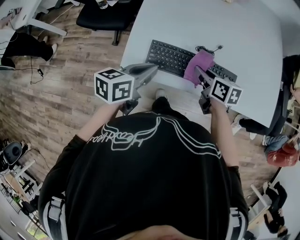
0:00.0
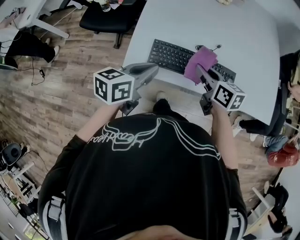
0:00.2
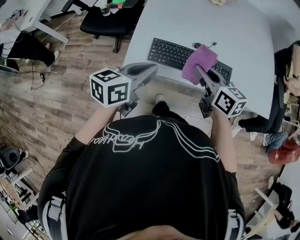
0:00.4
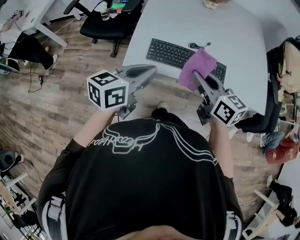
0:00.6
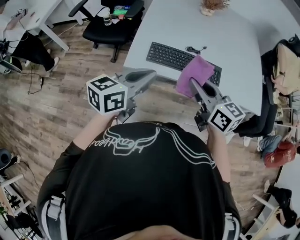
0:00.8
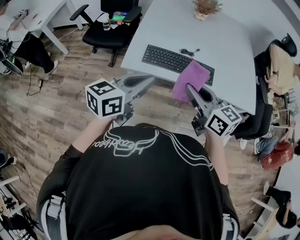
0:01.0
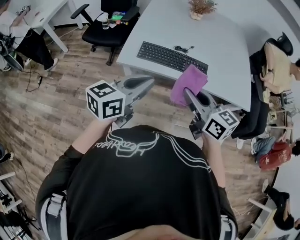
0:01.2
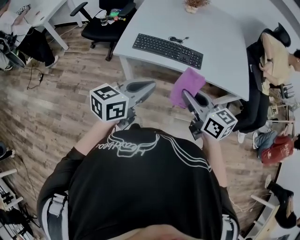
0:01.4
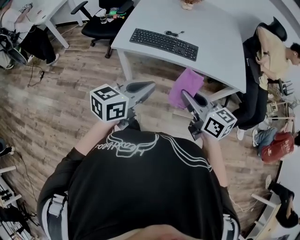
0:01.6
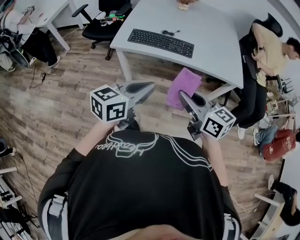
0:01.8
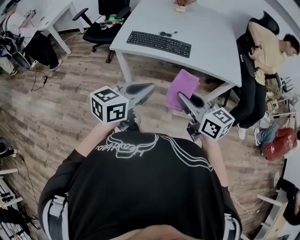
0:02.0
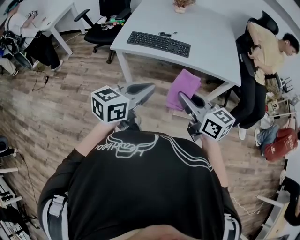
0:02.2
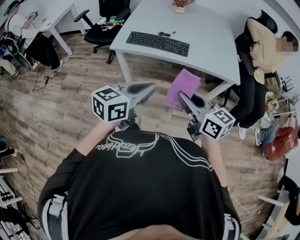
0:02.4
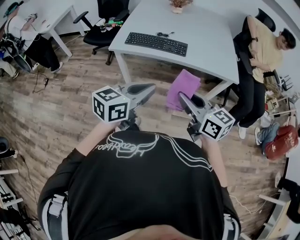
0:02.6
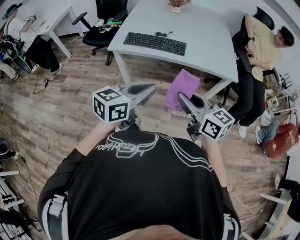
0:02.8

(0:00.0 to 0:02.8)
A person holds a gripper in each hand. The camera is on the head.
0:00.0 - 0:01.4: The right gripper heads backward and upward, covering some 40 cm, and turns by roughly 30 degrees. Meanwhile the left gripper heads backward, upward and to the right, covering some 35 cm, and changes its angle by about 20 degrees.
0:01.4 - 0:02.8: The grippers both shift backward and to the right by some 15 cm.

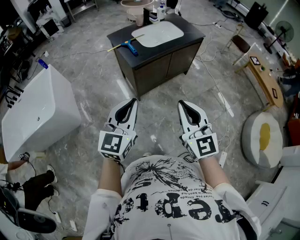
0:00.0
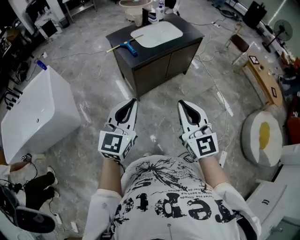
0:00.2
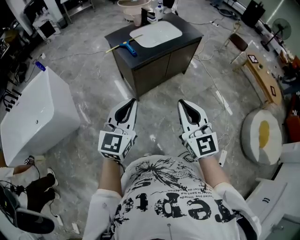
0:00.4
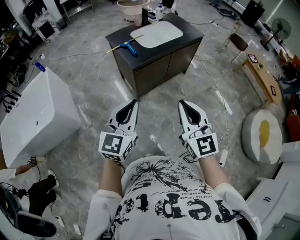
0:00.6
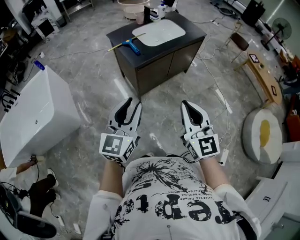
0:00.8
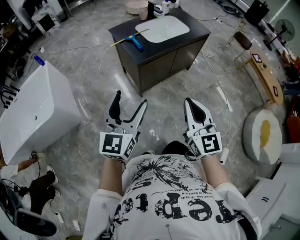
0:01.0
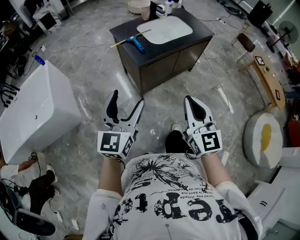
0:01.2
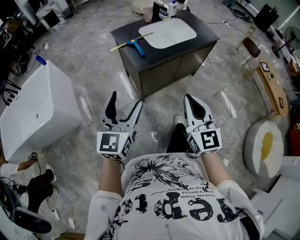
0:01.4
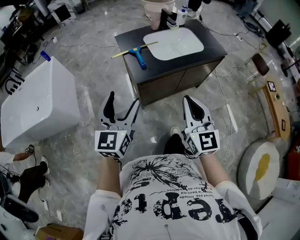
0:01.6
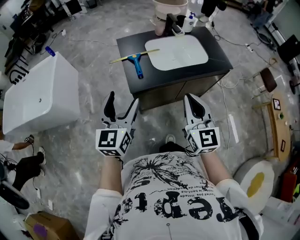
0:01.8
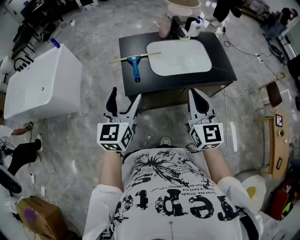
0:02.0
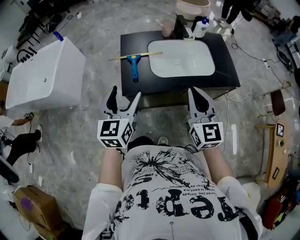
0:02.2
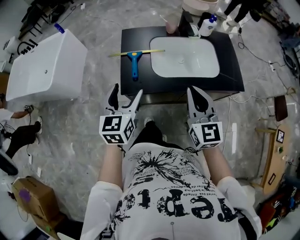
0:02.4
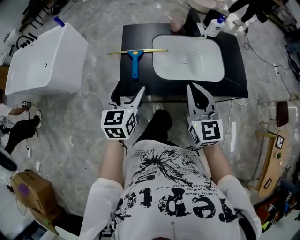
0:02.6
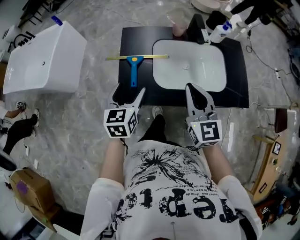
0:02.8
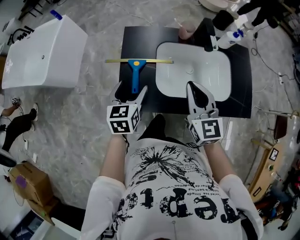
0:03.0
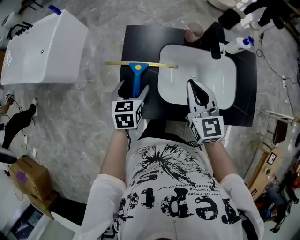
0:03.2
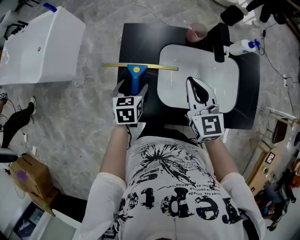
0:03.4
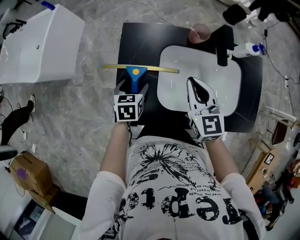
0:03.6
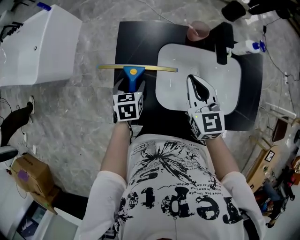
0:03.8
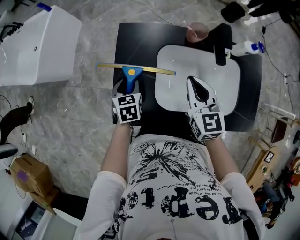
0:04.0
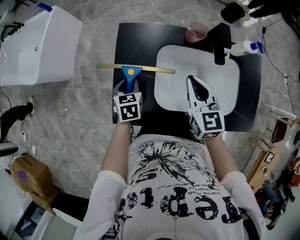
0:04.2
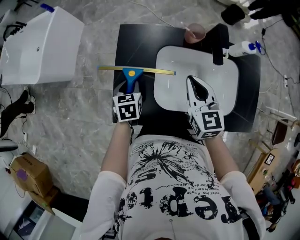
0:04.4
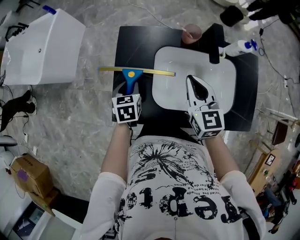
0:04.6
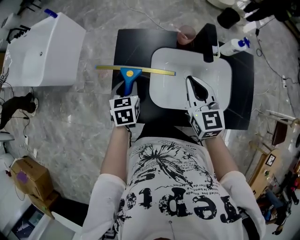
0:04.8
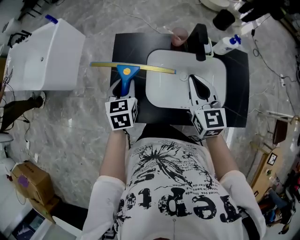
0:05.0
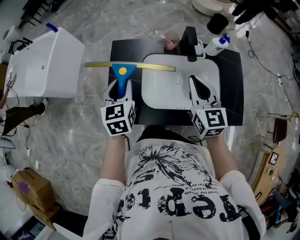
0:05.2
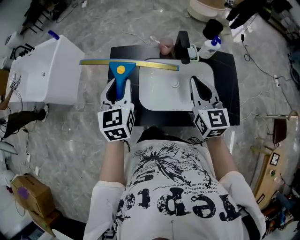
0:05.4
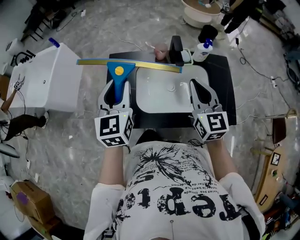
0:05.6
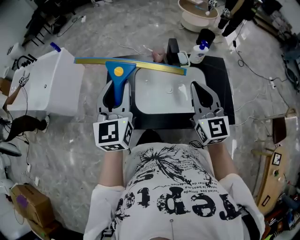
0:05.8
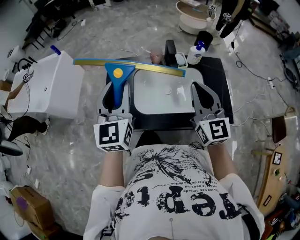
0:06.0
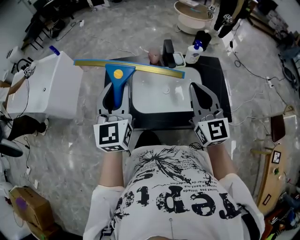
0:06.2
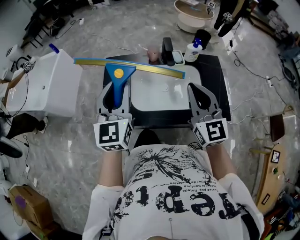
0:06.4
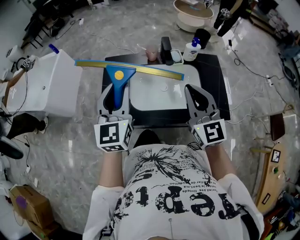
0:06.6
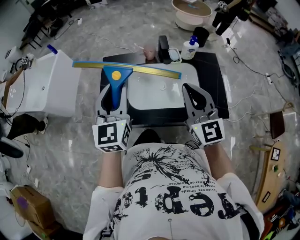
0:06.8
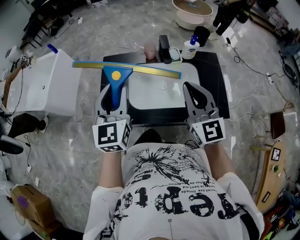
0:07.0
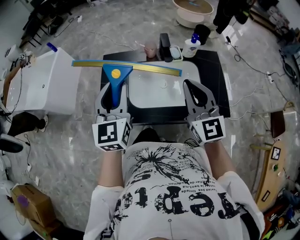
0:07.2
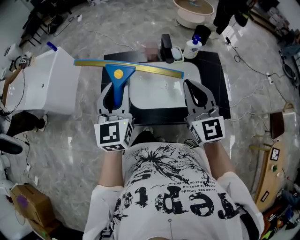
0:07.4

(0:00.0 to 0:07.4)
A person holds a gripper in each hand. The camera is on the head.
0:00.0 - 0:01.4: The left gripper shifts some 15 cm forward and to the left, and opens up. Meanwhile the right gripper moves forward, approximately 15 cm.
0:01.4 - 0:03.0: Both grippers are carried roughly 60 cm. The left gripper turns by about 50 degrees, while the right gripper changes its angle by about 30 degrees.
0:03.0 - 0:04.4: The right gripper shifts roughly 15 cm forward and downward. Meanwhile the left gripper travels downward and forward by some 15 cm, rotates roughly 20 degrees, and closes up.
0:04.4 - 0:06.0: The right gripper is displaced upward, backward and to the right by about 30 cm, and swivels roughly 30 degrees, while the left gripper is displaced upward by some 35 cm, and angles its fingers upward, by some 50 degrees.
0:06.0 - 0:07.4: The grippers stay close to where they were, moving slightly.

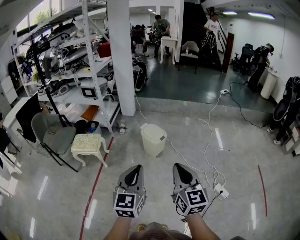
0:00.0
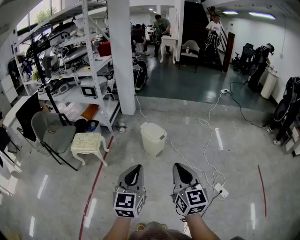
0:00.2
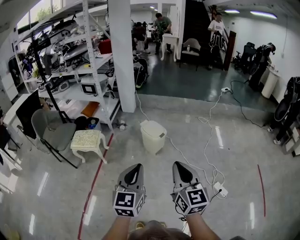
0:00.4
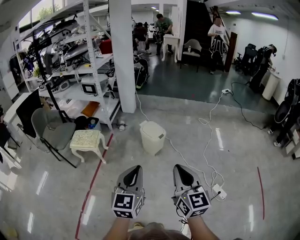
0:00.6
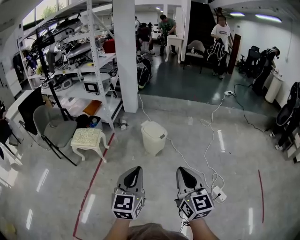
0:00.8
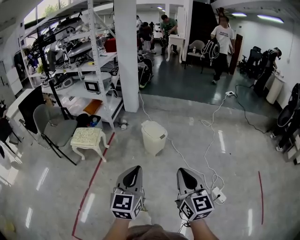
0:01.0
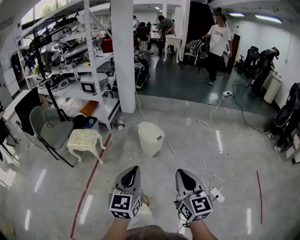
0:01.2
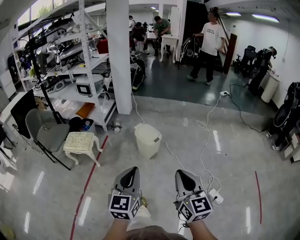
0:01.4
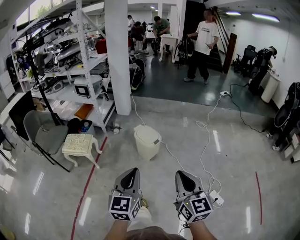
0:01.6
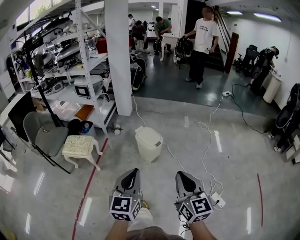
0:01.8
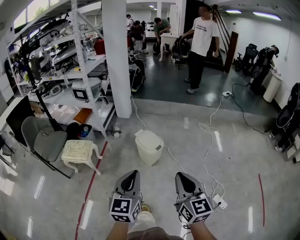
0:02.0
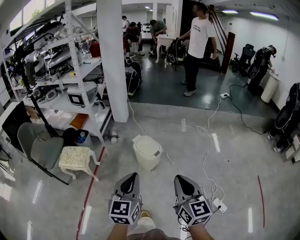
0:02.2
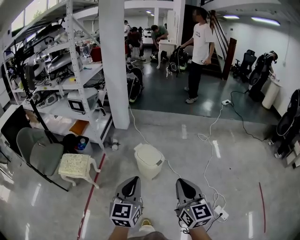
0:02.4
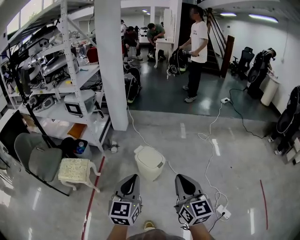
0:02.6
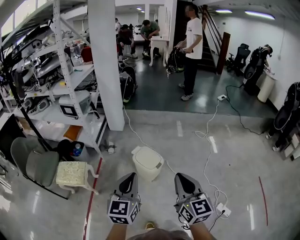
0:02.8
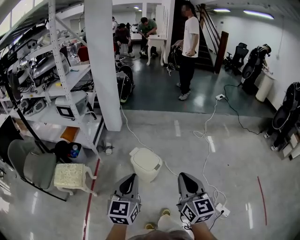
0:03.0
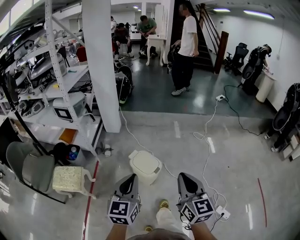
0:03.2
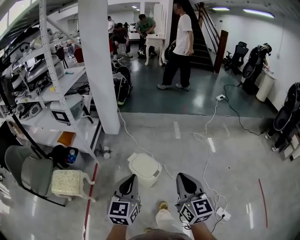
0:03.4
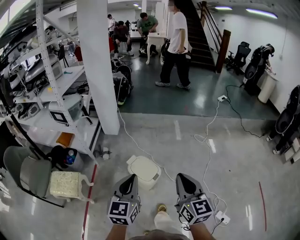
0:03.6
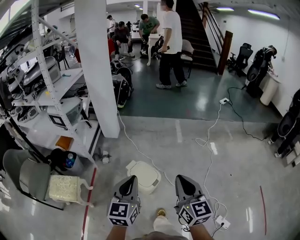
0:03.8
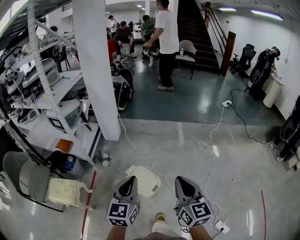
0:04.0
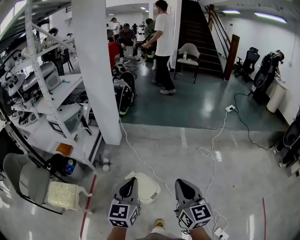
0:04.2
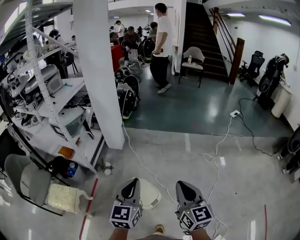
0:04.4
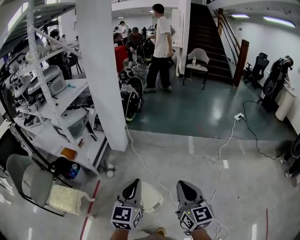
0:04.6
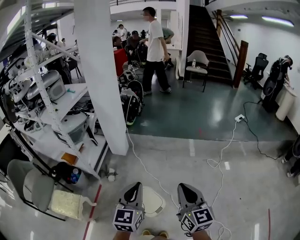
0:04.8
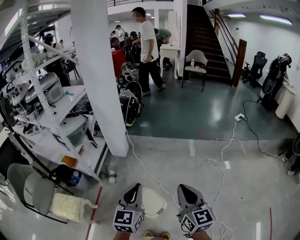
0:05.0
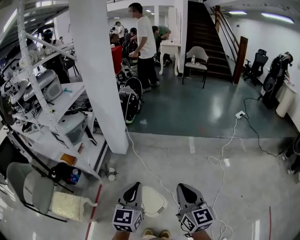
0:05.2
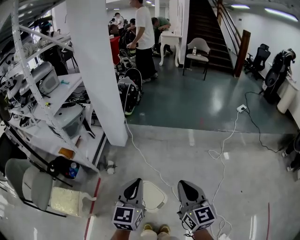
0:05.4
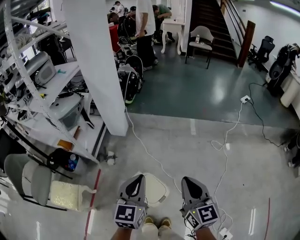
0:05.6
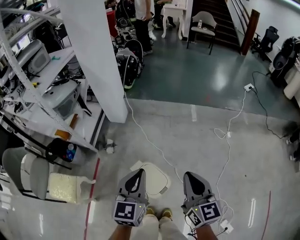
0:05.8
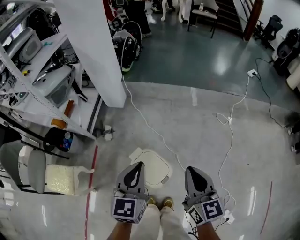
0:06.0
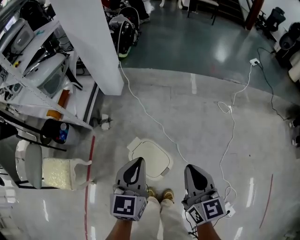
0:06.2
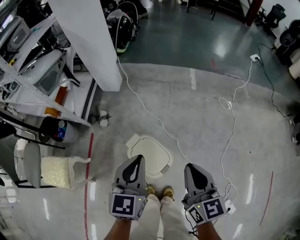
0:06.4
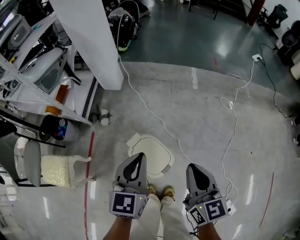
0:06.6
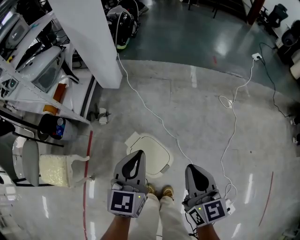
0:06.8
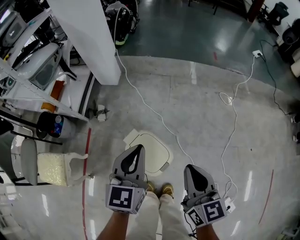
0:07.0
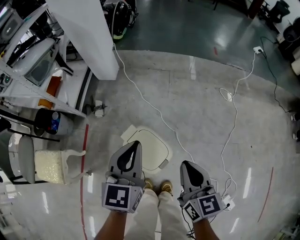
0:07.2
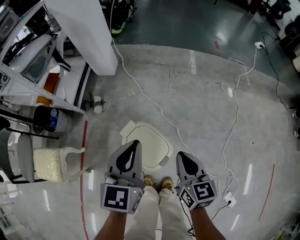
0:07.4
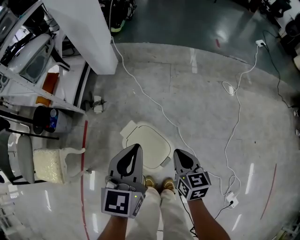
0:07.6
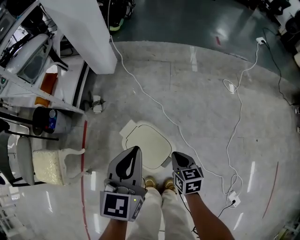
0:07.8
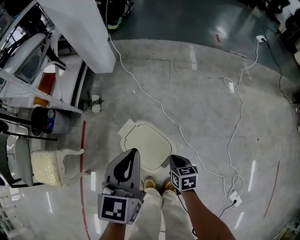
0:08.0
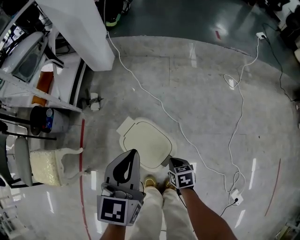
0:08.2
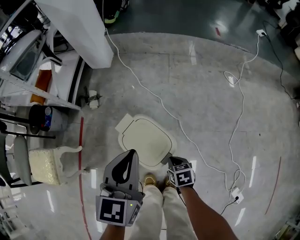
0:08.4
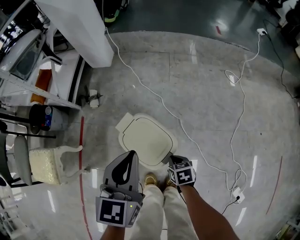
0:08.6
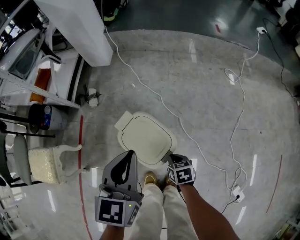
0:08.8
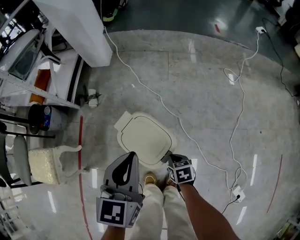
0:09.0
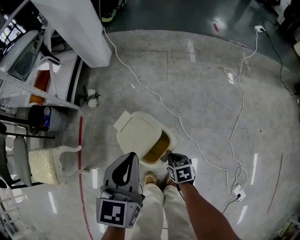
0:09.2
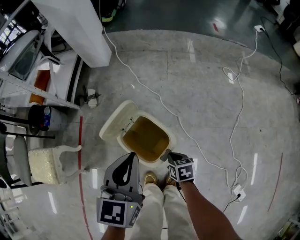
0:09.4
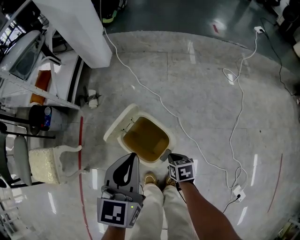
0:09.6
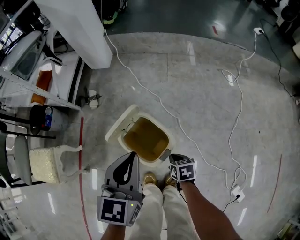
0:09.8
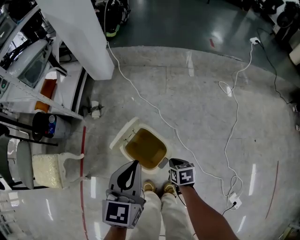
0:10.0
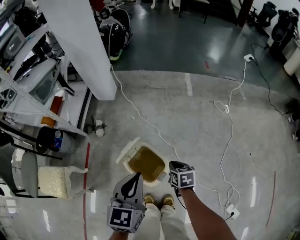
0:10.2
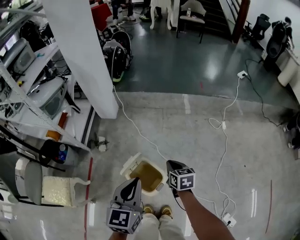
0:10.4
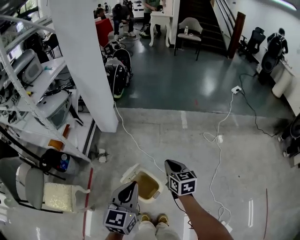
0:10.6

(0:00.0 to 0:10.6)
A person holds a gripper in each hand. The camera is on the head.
0:00.0 - 0:01.6: The right gripper moves to the right and forward, some 10 cm; the left gripper heads forward, covering roughly 5 cm.
0:01.6 - 0:03.0: The two grippers go roughly 25 cm forward.
0:03.0 - 0:04.6: Both grippers move forward, some 30 cm.
0:04.6 - 0:06.0: The right gripper moves downward, some 15 cm; the left gripper moves downward and forward, some 15 cm.
0:06.0 - 0:07.6: The left gripper is displaced downward by some 10 cm. The right gripper heads downward, covering some 30 cm, and turns by roughly 20 degrees.
0:07.6 - 0:09.0: The right gripper moves downward, roughly 20 cm, and turns by approximately 30 degrees. Meanwhile the left gripper travels downward by about 5 cm.
0:09.0 - 0:10.6: The left gripper moves upward, some 25 cm, while the right gripper is displaced upward by roughly 40 cm, and tips its fingers upward by about 30 degrees.

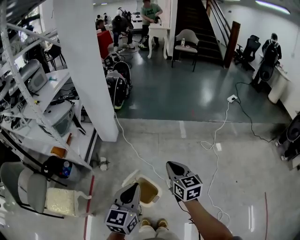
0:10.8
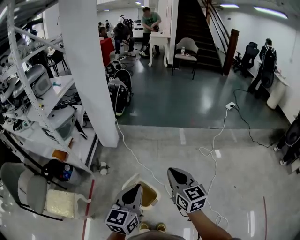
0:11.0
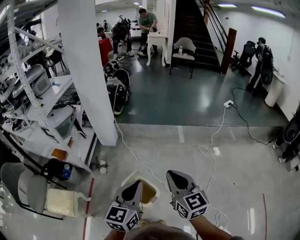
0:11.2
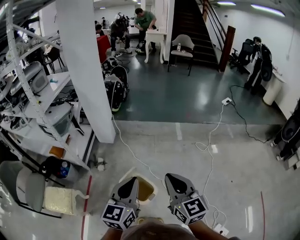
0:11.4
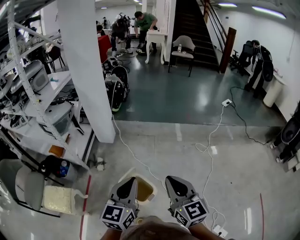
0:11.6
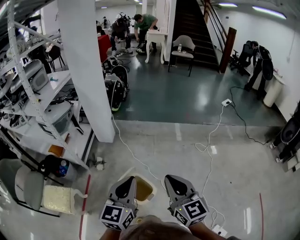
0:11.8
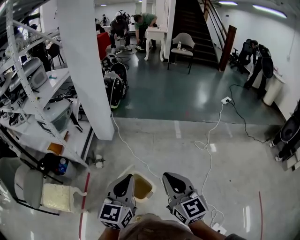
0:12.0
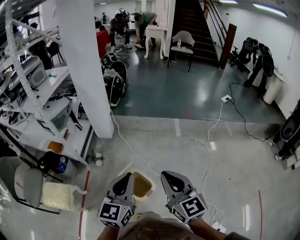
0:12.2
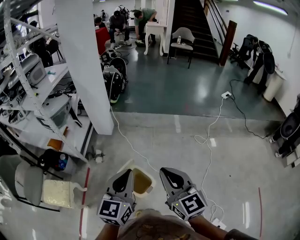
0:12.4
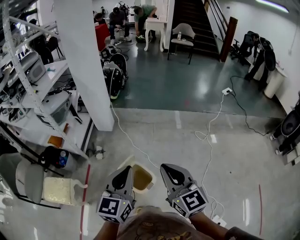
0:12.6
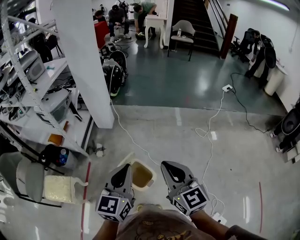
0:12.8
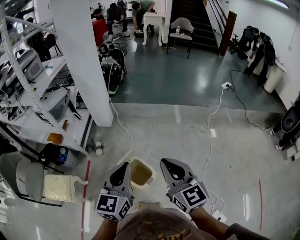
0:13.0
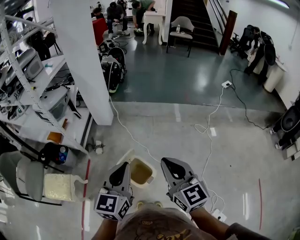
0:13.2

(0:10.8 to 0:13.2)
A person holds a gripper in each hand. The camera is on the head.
0:10.8 - 0:12.0: The right gripper heads backward and upward, covering about 15 cm. Meanwhile the left gripper moves upward, approximately 5 cm.
0:12.0 - 0:13.2: The grippers stay close to where they were, moving slightly.
